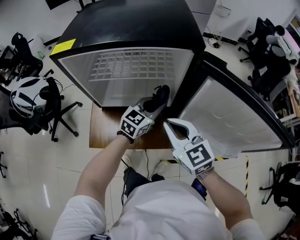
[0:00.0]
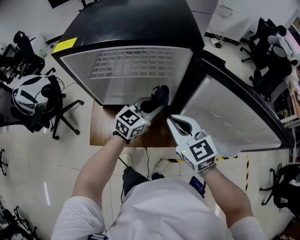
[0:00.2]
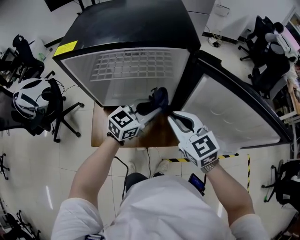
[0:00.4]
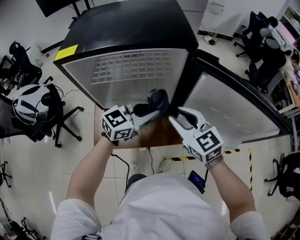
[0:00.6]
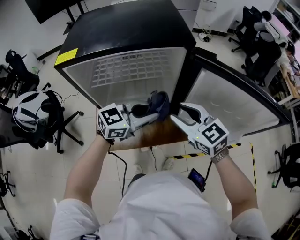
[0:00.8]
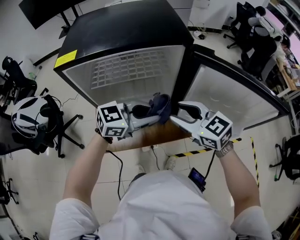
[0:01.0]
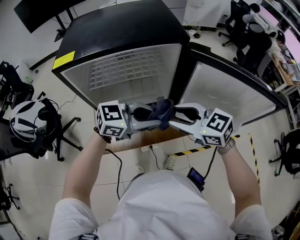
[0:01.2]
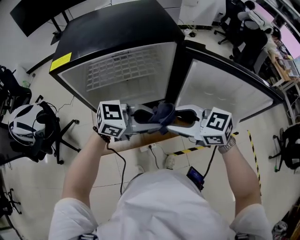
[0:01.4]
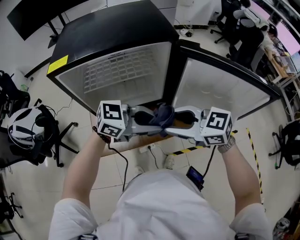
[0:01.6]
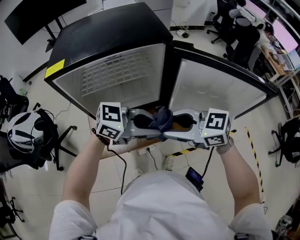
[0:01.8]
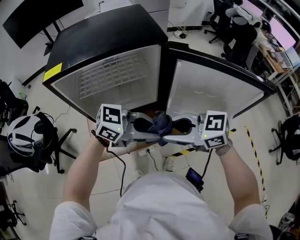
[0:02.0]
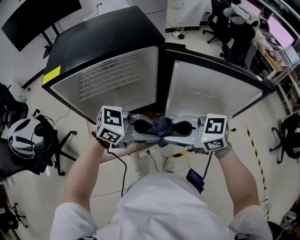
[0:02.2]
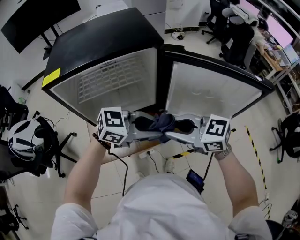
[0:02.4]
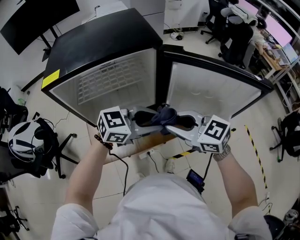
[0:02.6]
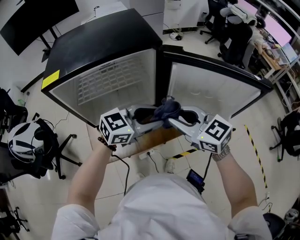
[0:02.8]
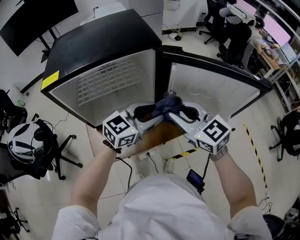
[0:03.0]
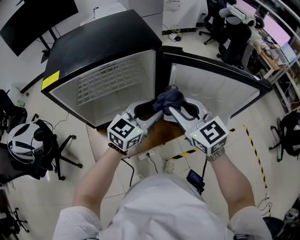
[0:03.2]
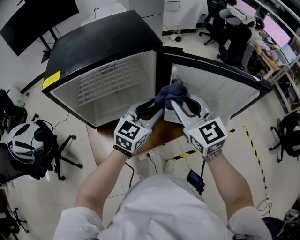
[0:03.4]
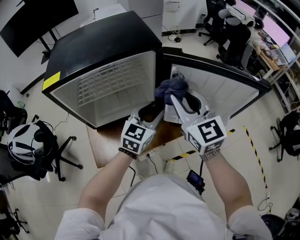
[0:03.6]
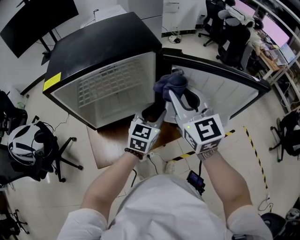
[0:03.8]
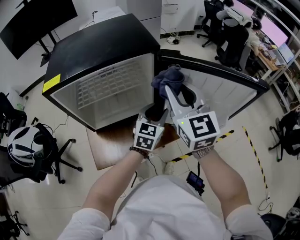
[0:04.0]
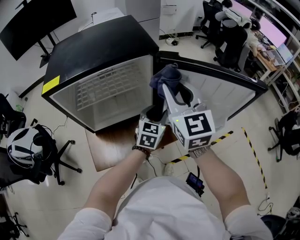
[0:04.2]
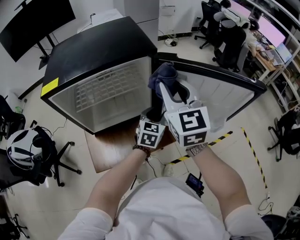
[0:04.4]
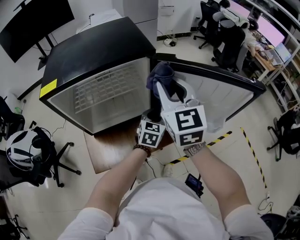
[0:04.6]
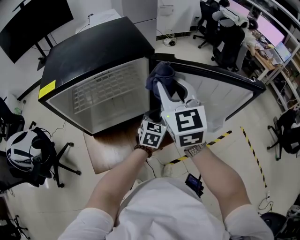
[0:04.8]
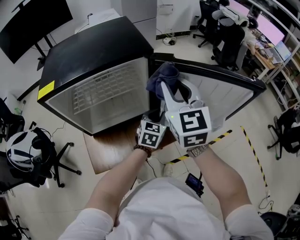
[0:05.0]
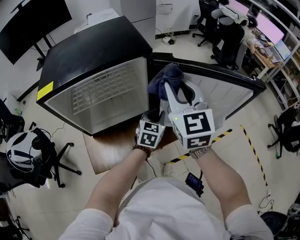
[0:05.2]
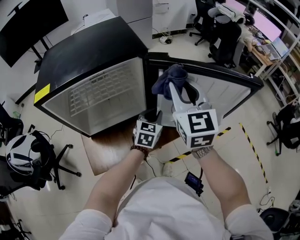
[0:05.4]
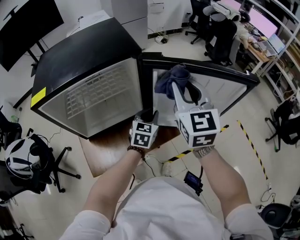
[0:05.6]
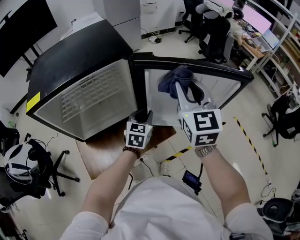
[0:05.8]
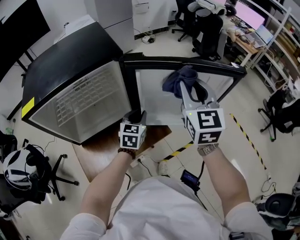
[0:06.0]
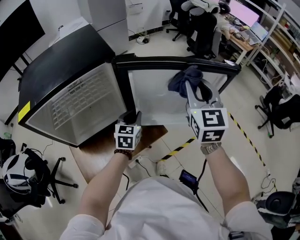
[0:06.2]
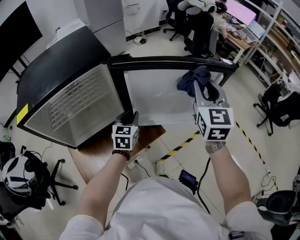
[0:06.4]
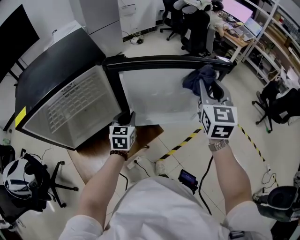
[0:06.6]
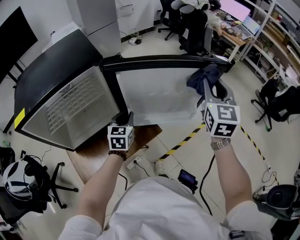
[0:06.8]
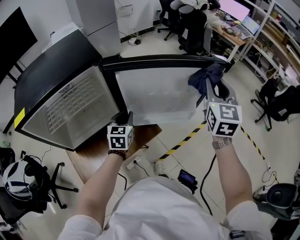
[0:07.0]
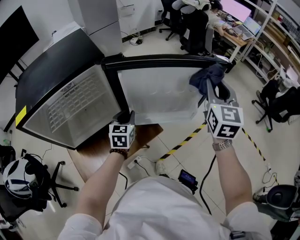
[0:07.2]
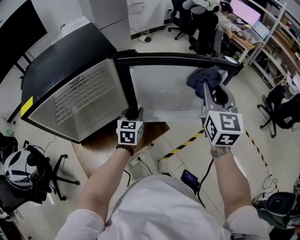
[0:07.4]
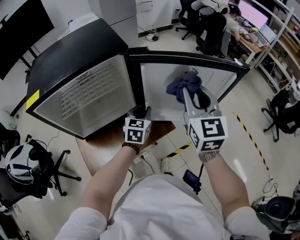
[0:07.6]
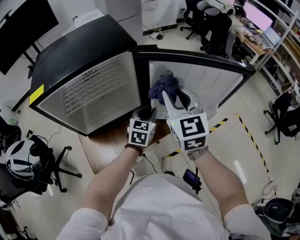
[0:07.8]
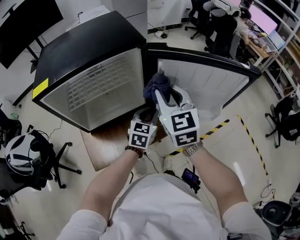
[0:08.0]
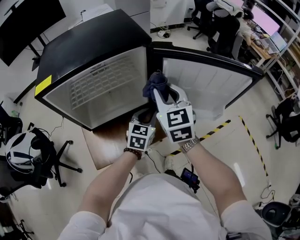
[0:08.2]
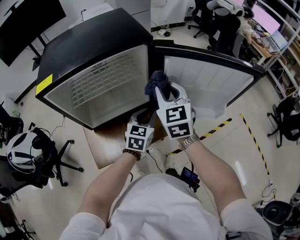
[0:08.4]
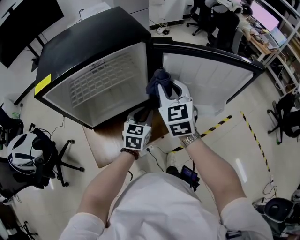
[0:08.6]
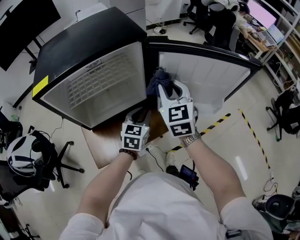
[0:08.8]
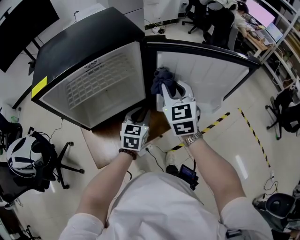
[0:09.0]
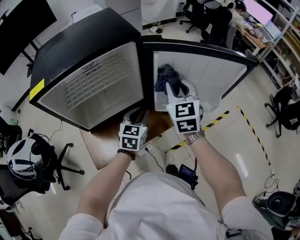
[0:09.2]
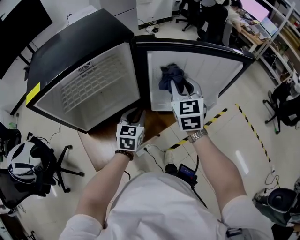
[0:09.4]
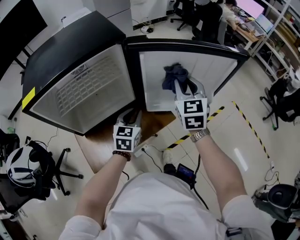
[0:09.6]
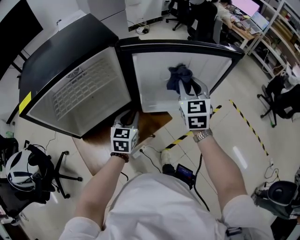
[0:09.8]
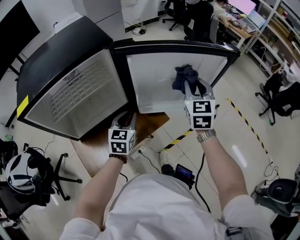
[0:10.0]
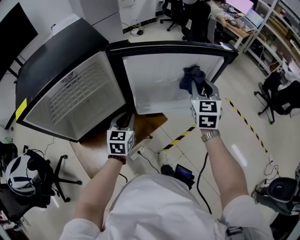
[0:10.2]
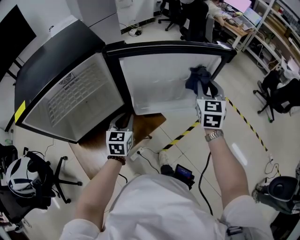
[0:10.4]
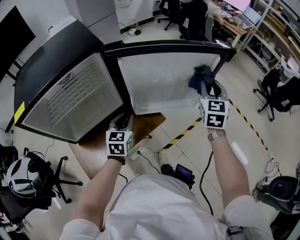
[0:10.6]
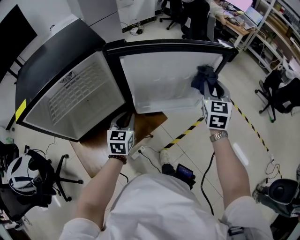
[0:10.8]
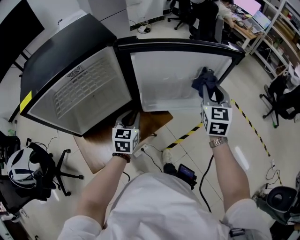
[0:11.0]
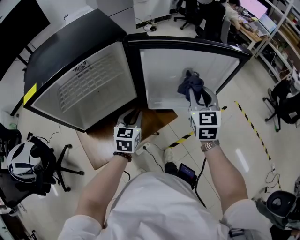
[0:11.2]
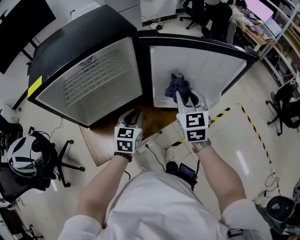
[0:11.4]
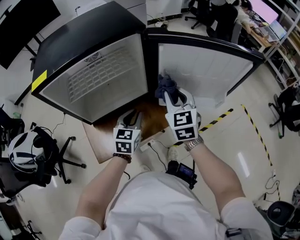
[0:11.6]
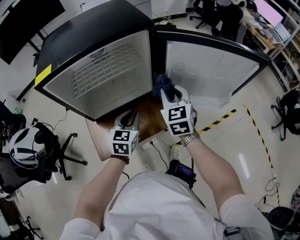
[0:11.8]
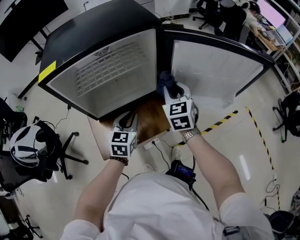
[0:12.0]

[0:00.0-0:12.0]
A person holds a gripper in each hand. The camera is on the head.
0:00.0 to 0:01.6: The left gripper moves approximately 20 cm, and changes its angle by roughly 60 degrees. The right gripper moves some 10 cm, turns by roughly 20 degrees, and opens up.
0:01.6 to 0:03.0: The left gripper ends up roughly 10 cm from where it was, changes its angle by approximately 30 degrees, and opens its fingers. Meanwhile the right gripper moves roughly 10 cm, turns by some 30 degrees, and closes its fingers.
0:03.0 to 0:04.4: The right gripper shifts approximately 10 cm upward and forward, and changes its angle by roughly 30 degrees, while the left gripper travels downward and forward by some 15 cm, and rotates about 30 degrees.
0:04.4 to 0:06.0: The right gripper is displaced to the right by roughly 15 cm. Meanwhile the left gripper closes its fingers.
0:06.0 to 0:07.6: The right gripper goes to the right and returns, roughly 15 cm each way.
0:07.6 to 0:09.0: The right gripper travels to the left and downward by some 15 cm. Meanwhile the left gripper heads backward and to the left, covering roughly 10 cm.
0:09.0 to 0:10.4: The right gripper travels to the right by about 25 cm, and rotates approximately 30 degrees.
0:10.4 to 0:12.0: The right gripper heads to the left, covering roughly 30 cm, and rotates approximately 30 degrees. The left gripper is displaced to the left and backward by approximately 15 cm.

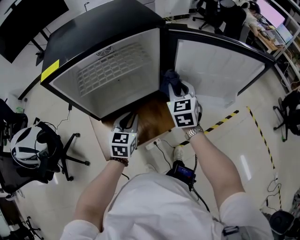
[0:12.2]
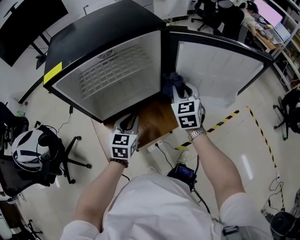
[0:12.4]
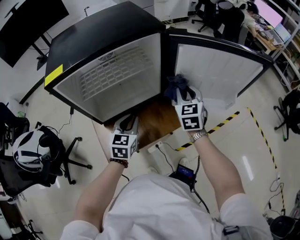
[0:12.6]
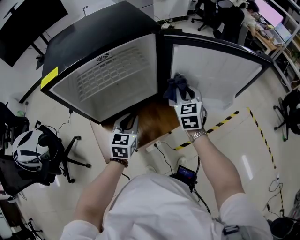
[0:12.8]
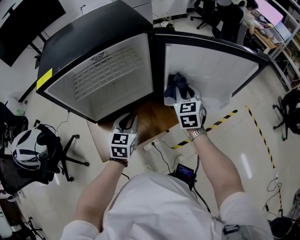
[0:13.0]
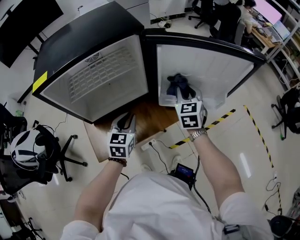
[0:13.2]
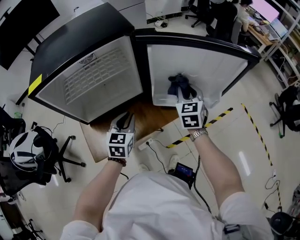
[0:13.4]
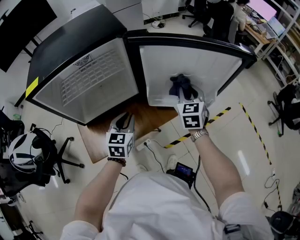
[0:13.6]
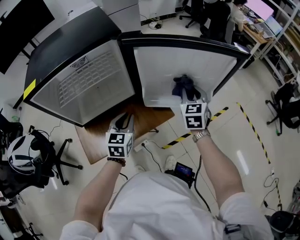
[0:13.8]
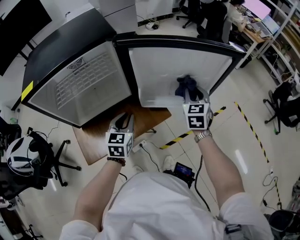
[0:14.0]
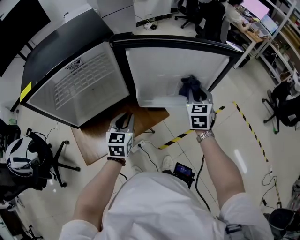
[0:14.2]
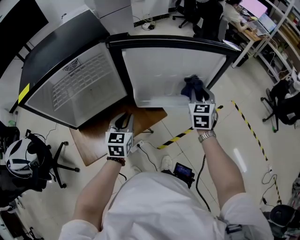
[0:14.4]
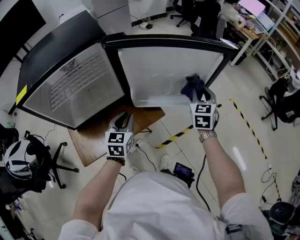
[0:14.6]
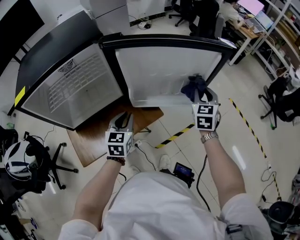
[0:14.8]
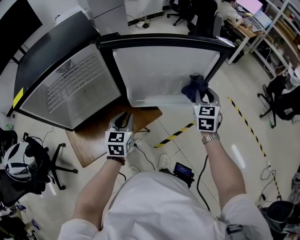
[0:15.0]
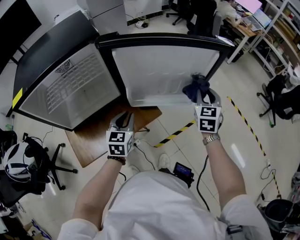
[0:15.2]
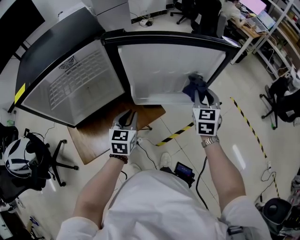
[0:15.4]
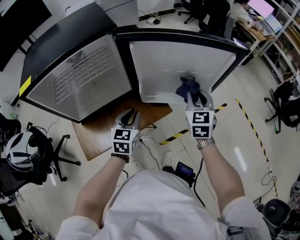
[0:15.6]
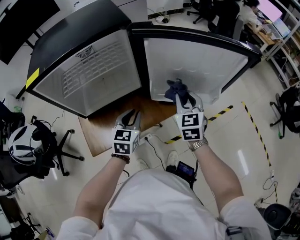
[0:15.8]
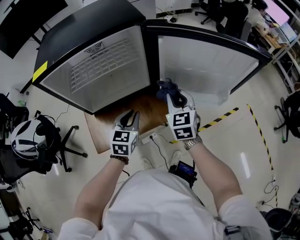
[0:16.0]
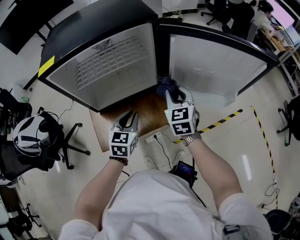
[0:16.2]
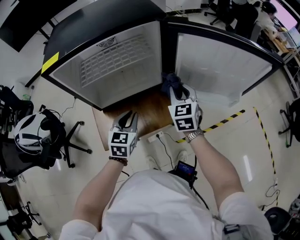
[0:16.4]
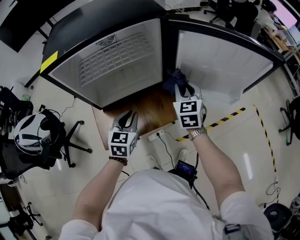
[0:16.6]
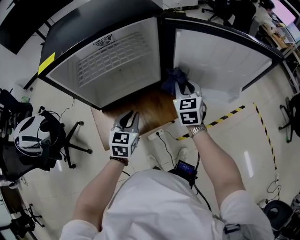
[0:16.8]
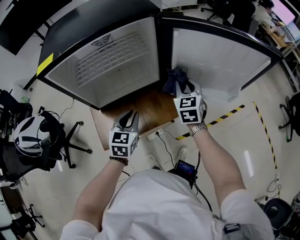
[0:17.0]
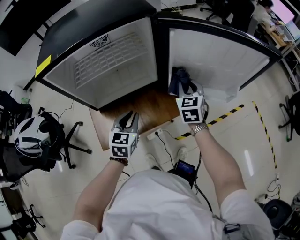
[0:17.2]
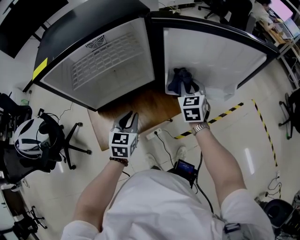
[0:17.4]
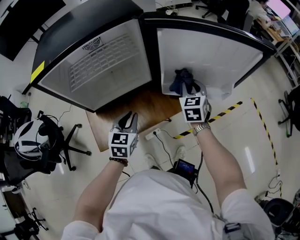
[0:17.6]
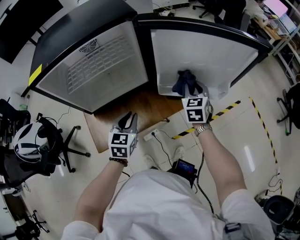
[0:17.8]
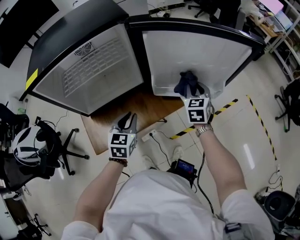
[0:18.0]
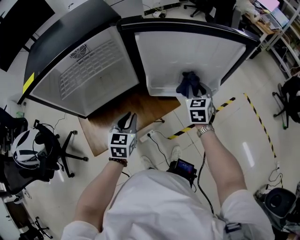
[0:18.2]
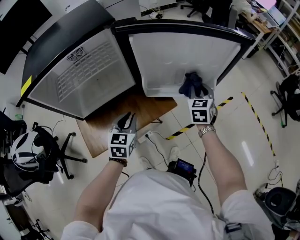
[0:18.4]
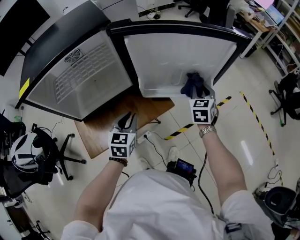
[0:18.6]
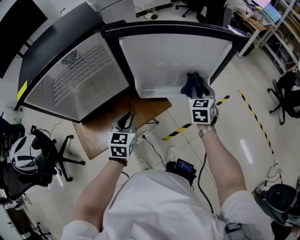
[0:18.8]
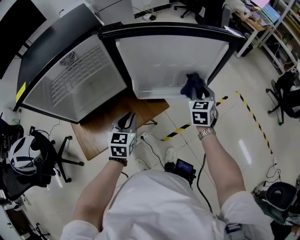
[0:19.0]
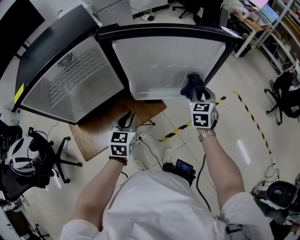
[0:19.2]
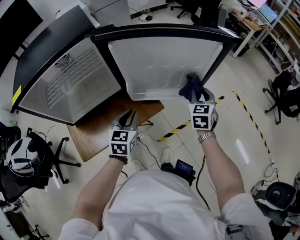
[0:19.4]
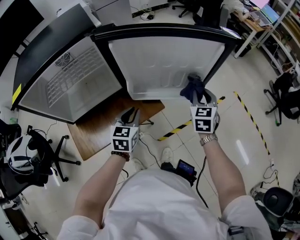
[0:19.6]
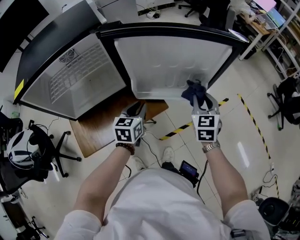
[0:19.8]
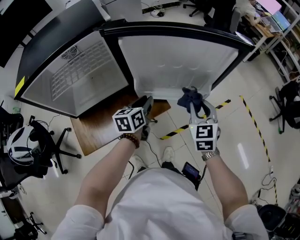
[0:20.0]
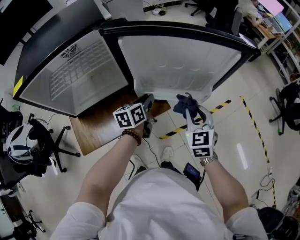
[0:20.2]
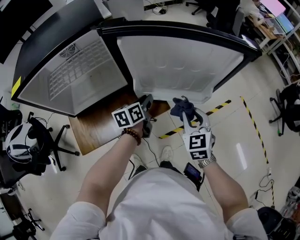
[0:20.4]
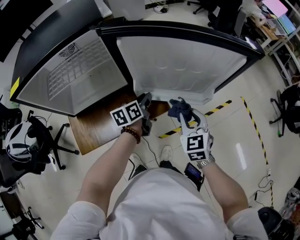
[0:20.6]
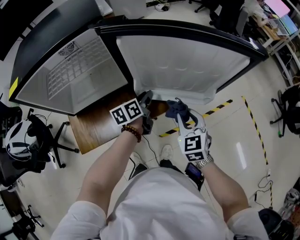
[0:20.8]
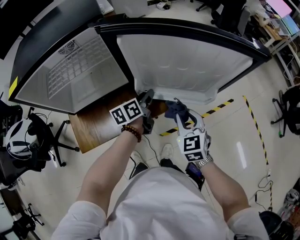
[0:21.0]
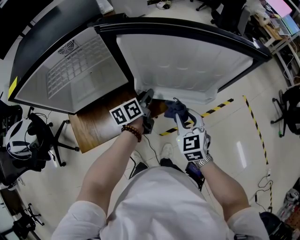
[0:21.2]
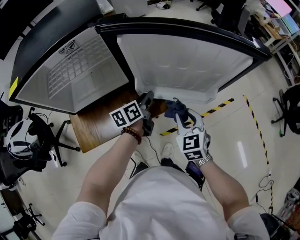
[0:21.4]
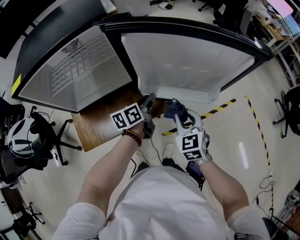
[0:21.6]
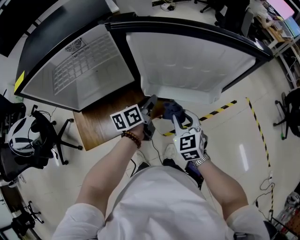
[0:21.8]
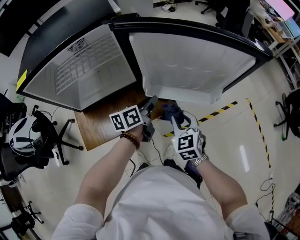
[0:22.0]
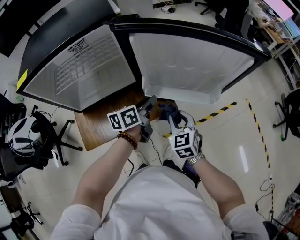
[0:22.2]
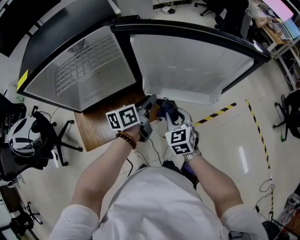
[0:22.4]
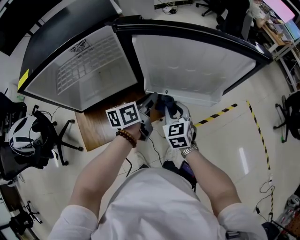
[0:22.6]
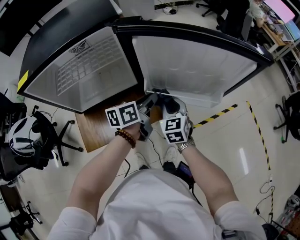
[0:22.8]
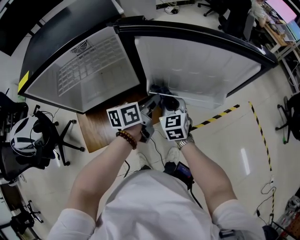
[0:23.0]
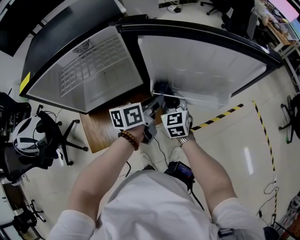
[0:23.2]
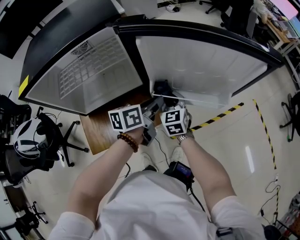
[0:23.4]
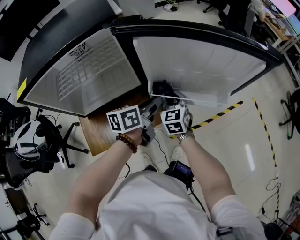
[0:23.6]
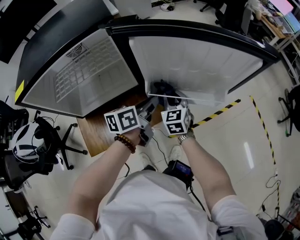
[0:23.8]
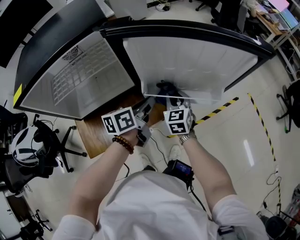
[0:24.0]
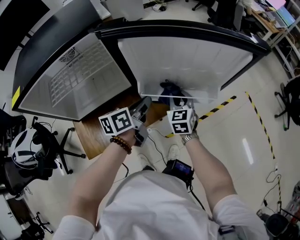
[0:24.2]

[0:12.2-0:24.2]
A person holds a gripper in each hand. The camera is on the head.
0:12.2 to 0:13.8: The right gripper goes some 20 cm to the right; the left gripper shifts about 10 cm to the right.
0:13.8 to 0:15.2: The right gripper is displaced to the right by approximately 15 cm. Meanwhile the left gripper goes approximately 5 cm to the right.
0:15.2 to 0:16.6: The right gripper moves to the left, roughly 30 cm, and turns by about 20 degrees; the left gripper shifts some 15 cm to the left.
0:16.6 to 0:18.2: The right gripper shifts about 20 cm to the right. The left gripper moves to the right, roughly 10 cm.
0:18.2 to 0:19.8: The right gripper moves to the right, roughly 10 cm; the left gripper goes approximately 15 cm to the right and forward.
0:19.8 to 0:21.2: The right gripper is displaced to the left and downward by some 10 cm, and changes its angle by roughly 20 degrees, while the left gripper heads forward, covering roughly 5 cm, and swivels some 40 degrees.
0:21.2 to 0:22.6: The left gripper heads upward, covering roughly 5 cm, while the right gripper is displaced to the left by some 5 cm.
0:22.6 to 0:24.2: The right gripper is displaced forward by roughly 5 cm, and goes to the left and returns, some 5 cm each way.
